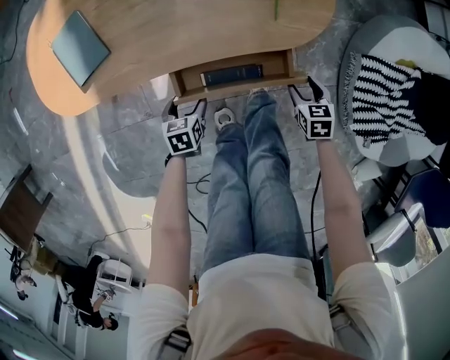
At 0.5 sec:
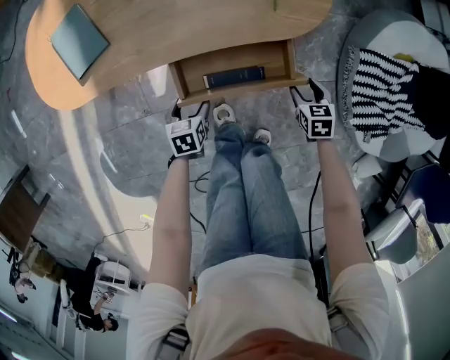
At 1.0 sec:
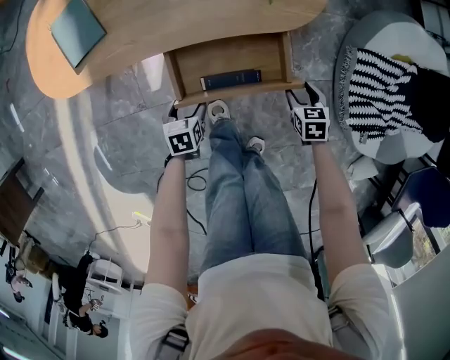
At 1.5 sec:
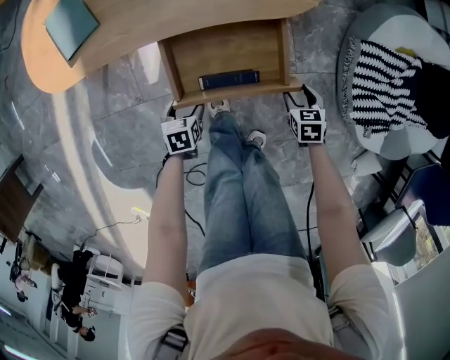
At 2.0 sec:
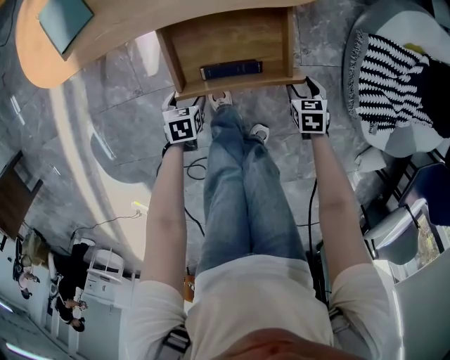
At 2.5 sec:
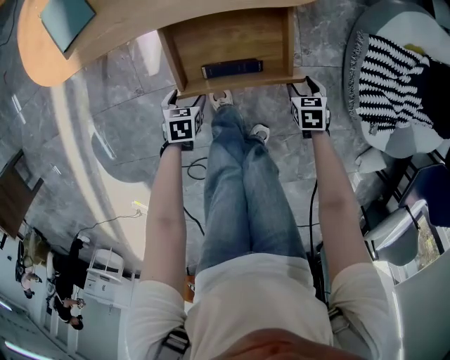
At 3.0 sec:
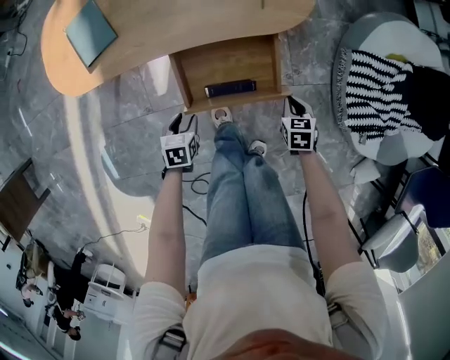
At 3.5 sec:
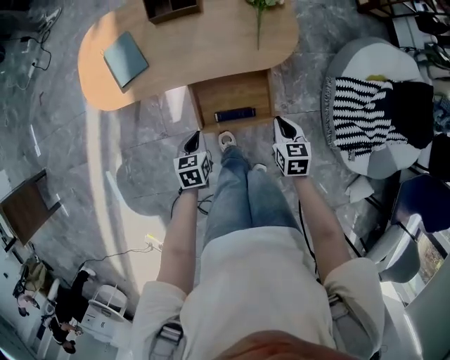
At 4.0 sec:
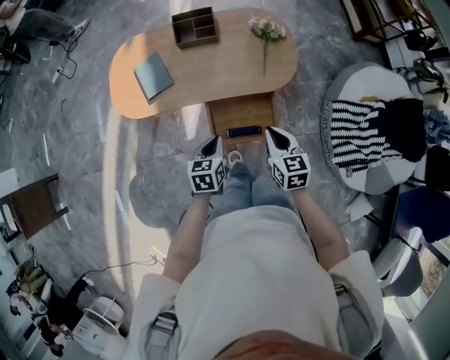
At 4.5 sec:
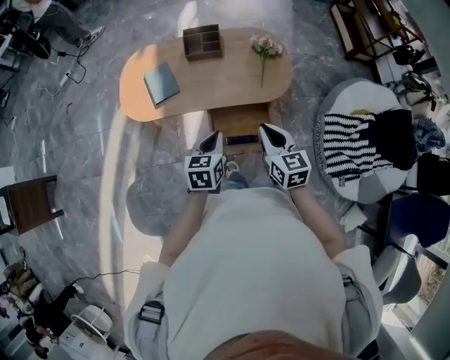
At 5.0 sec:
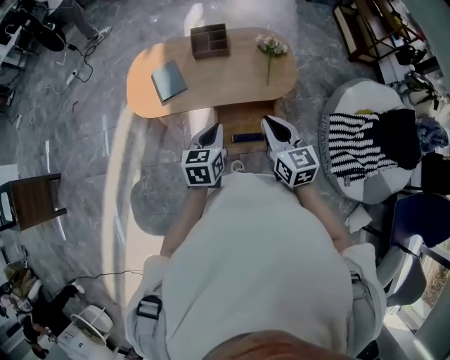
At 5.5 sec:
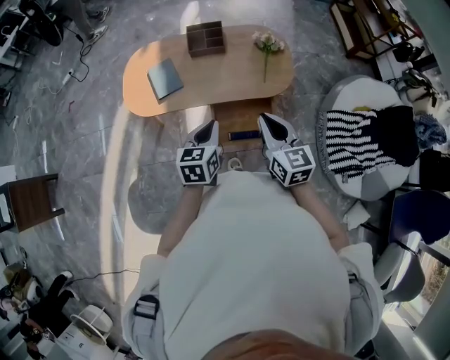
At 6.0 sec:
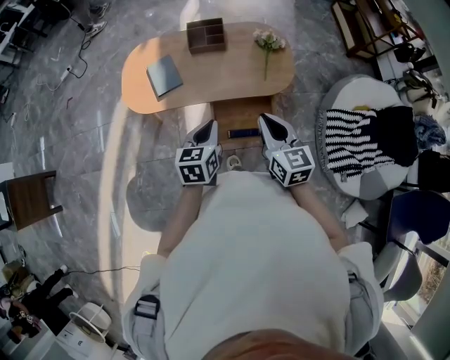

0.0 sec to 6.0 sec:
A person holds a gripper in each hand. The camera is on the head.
0.0 sec to 2.0 sec: Both grippers move backward and downward, some 15 cm.
2.0 sec to 4.0 sec: The grippers both shift upward by about 40 cm. The left gripper rotates approximately 30 degrees, and closes up. Meanwhile the right gripper points its fingers roughly 40 degrees further upward, and closes up.
4.0 sec to 6.0 sec: The two grippers go about 15 cm upward.

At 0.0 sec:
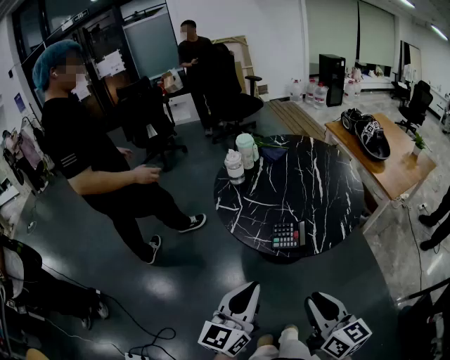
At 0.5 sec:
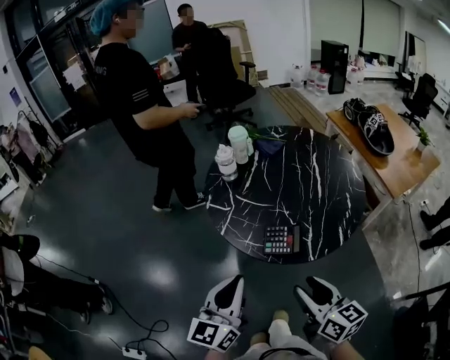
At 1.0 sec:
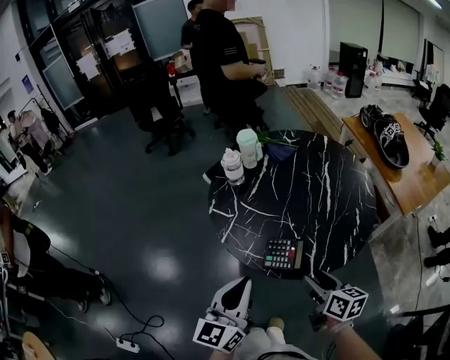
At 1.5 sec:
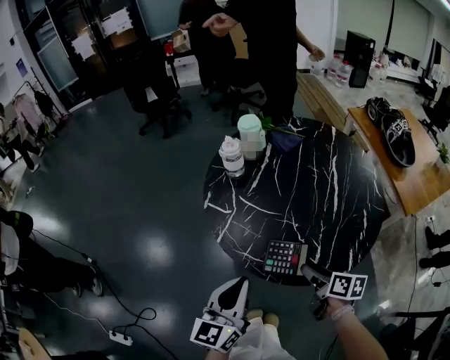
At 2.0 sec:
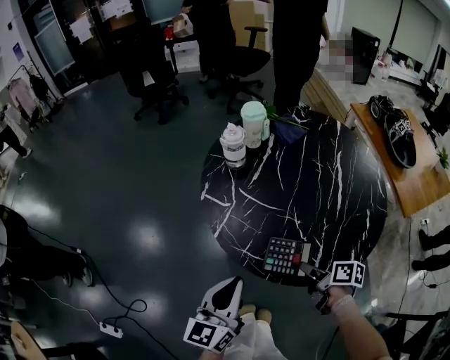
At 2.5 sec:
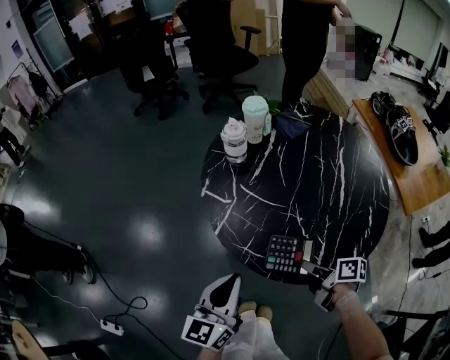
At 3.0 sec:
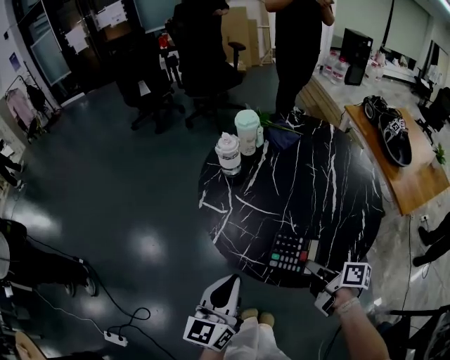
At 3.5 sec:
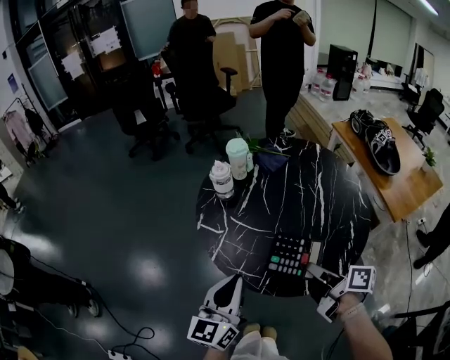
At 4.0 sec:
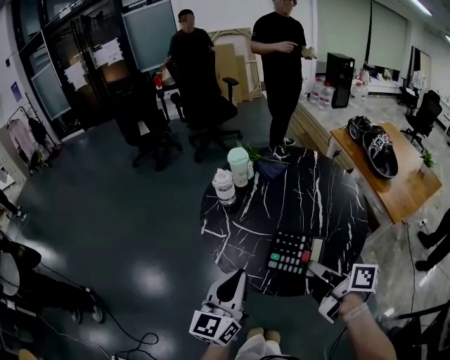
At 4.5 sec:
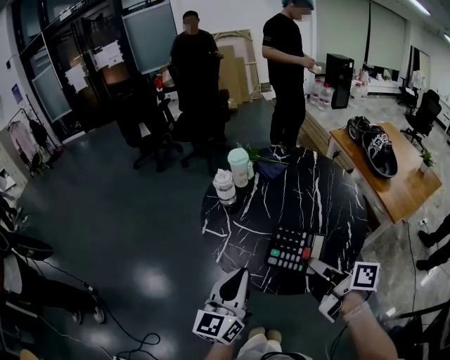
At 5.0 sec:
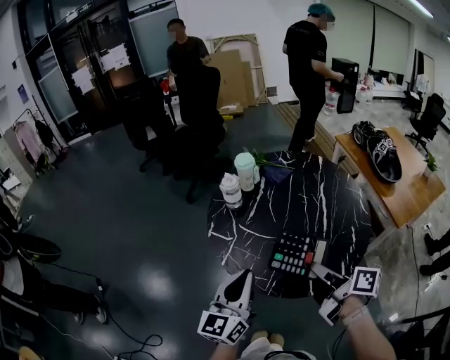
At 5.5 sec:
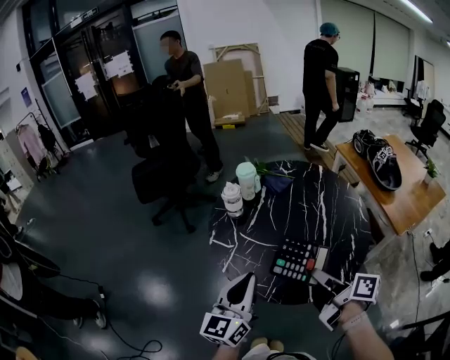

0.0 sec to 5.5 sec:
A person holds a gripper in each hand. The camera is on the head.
0.0 sec to 2.0 sec: The right gripper is displaced forward and downward by about 35 cm, changes its angle by about 50 degrees, and opens, then closes again; the left gripper moves forward and downward, about 20 cm.
2.0 sec to 3.5 sec: The right gripper is displaced upward by roughly 15 cm, while the left gripper shifts roughly 5 cm upward.
3.5 sec to 5.5 sec: The right gripper shifts some 5 cm upward.

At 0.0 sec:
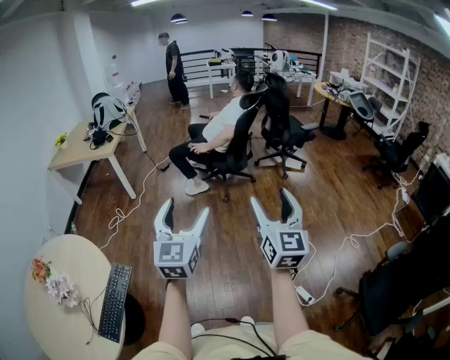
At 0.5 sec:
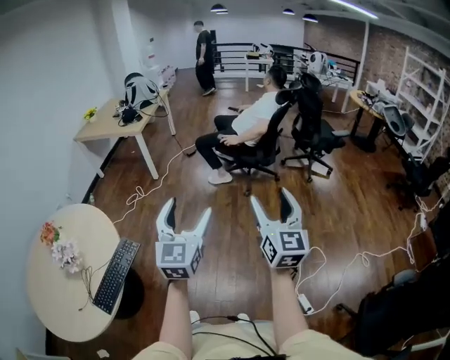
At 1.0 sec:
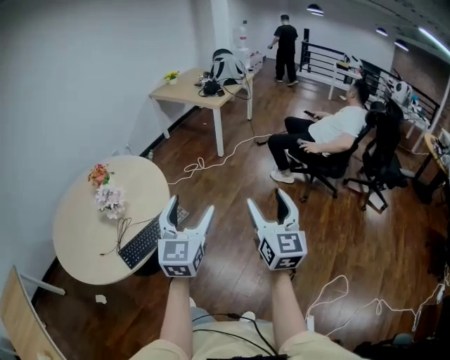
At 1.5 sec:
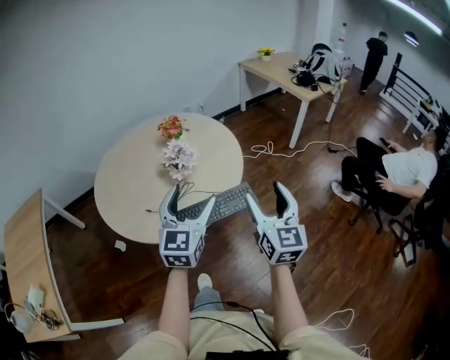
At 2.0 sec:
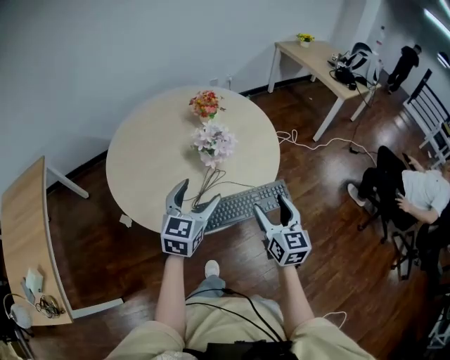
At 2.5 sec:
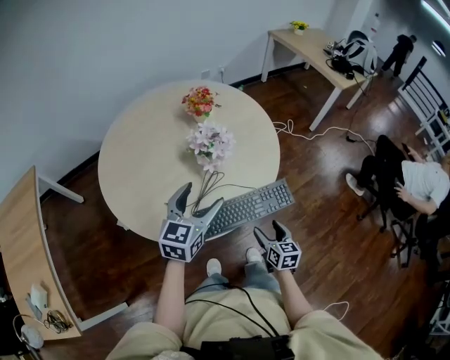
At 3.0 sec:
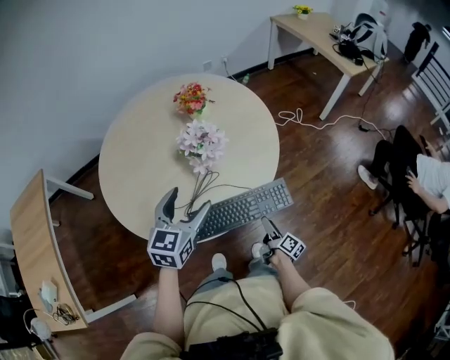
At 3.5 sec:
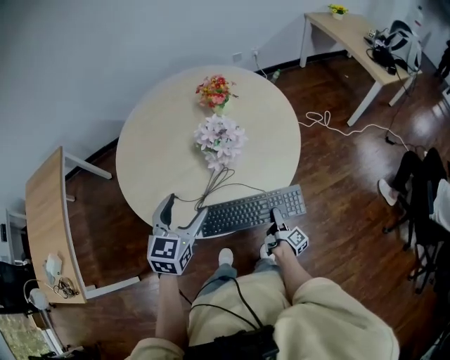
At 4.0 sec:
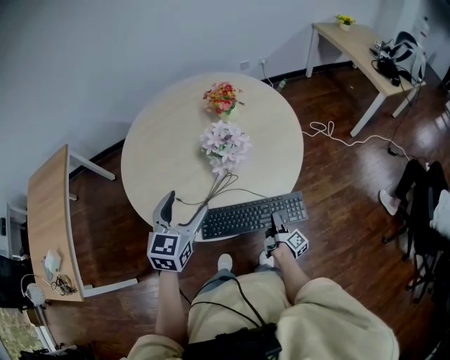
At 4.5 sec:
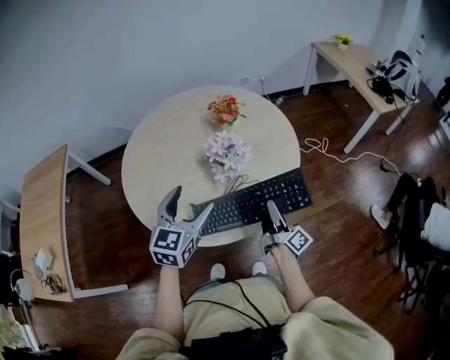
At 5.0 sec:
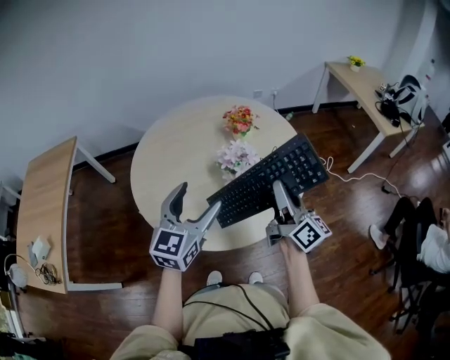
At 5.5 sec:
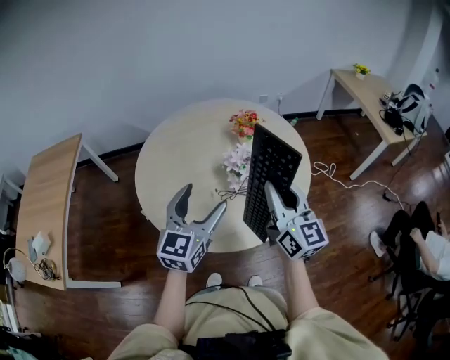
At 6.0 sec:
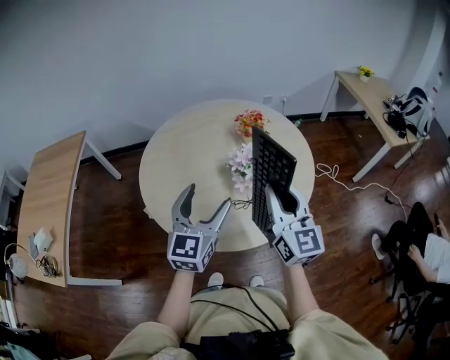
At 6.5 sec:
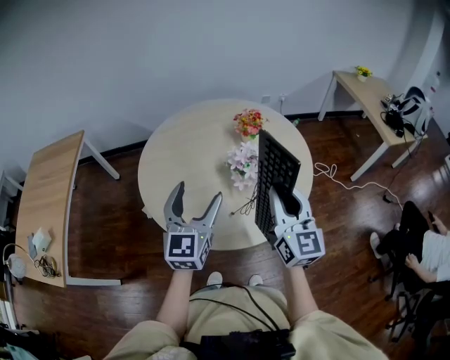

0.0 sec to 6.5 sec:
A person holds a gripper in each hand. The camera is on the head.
0.0 sec to 2.0 sec: The two grippers travel together, approximately 70 cm. The left gripper swivels roughly 60 degrees, while the right gripper swivels some 80 degrees.
2.0 sec to 4.5 sec: The right gripper moves forward, about 15 cm, goes downward and returns, roughly 35 cm each way, rolls clockwise, seen from behind, by about 60 degrees, and closes its fingers. The left gripper shifts by roughly 5 cm.
4.5 sec to 6.5 sec: The right gripper travels upward by about 25 cm, and rolls counterclockwise, seen from behind, by roughly 70 degrees. The left gripper shifts approximately 10 cm upward and to the left, and turns by approximately 20 degrees.

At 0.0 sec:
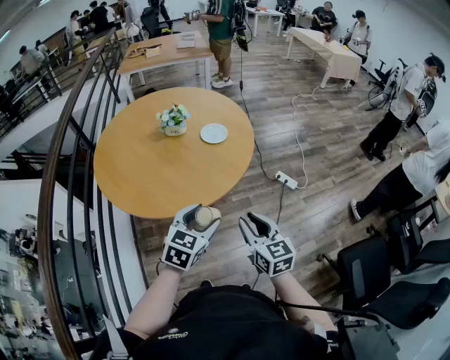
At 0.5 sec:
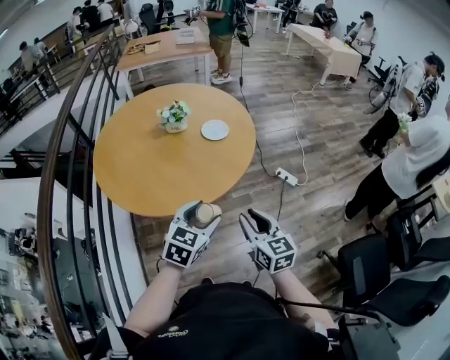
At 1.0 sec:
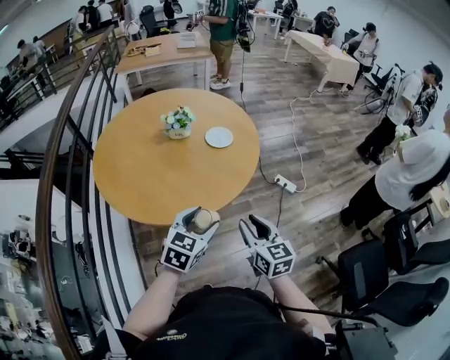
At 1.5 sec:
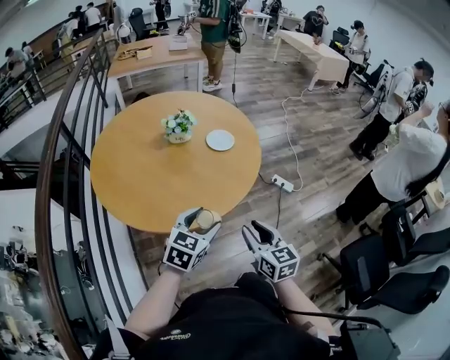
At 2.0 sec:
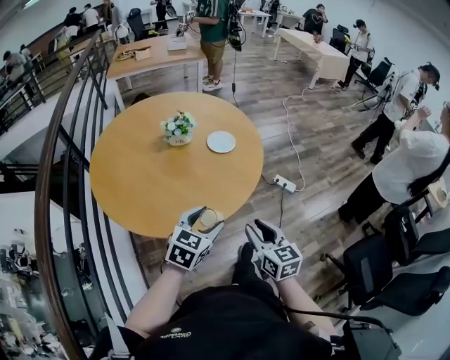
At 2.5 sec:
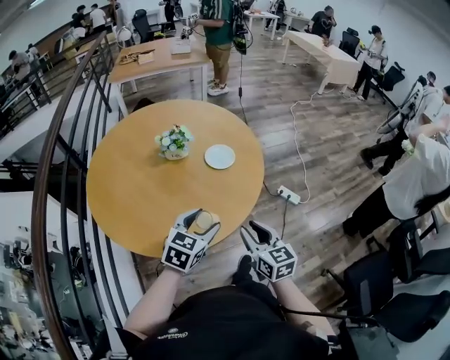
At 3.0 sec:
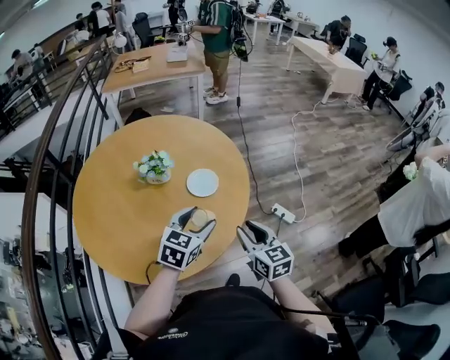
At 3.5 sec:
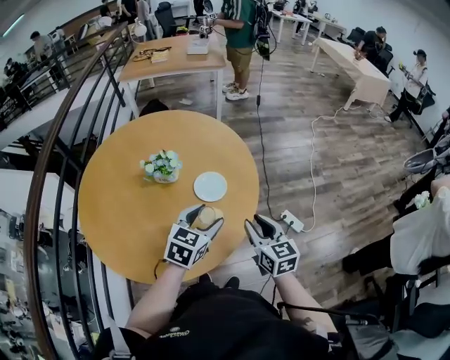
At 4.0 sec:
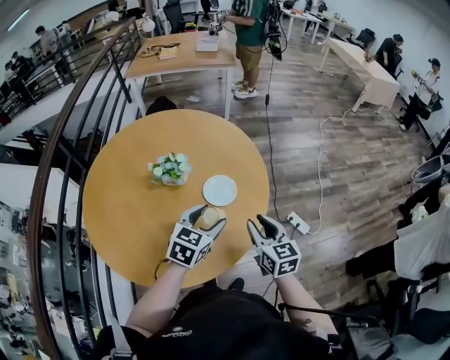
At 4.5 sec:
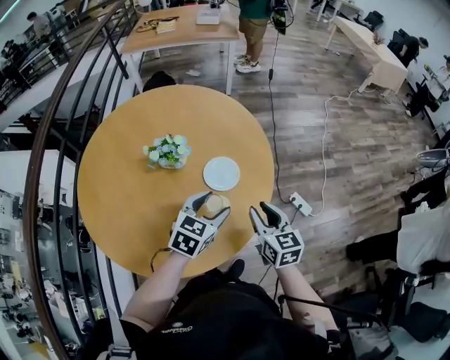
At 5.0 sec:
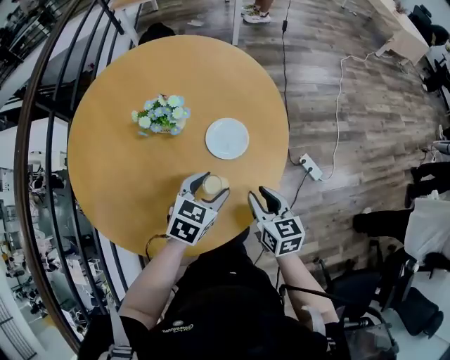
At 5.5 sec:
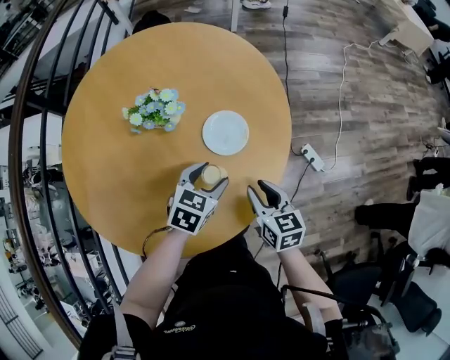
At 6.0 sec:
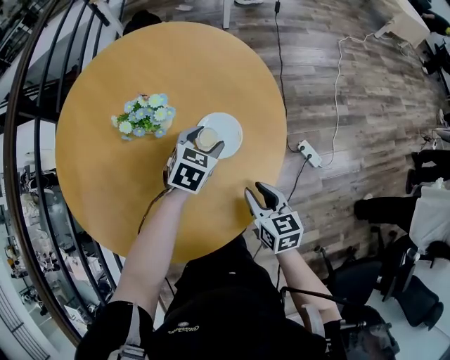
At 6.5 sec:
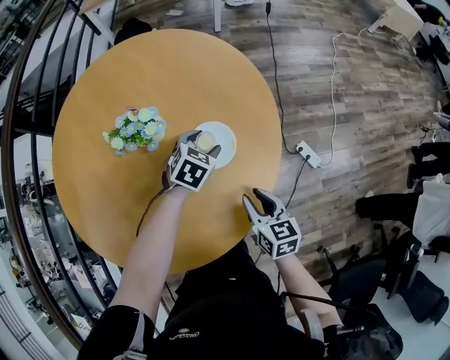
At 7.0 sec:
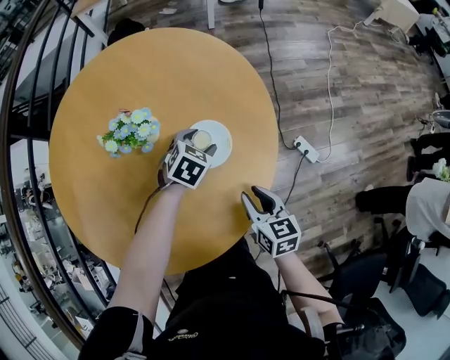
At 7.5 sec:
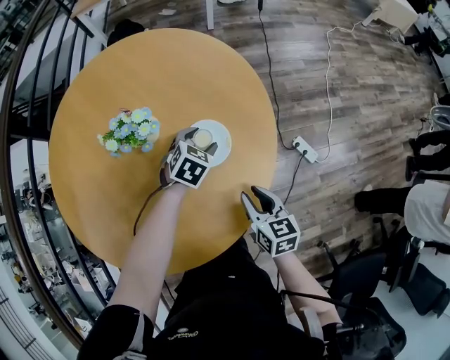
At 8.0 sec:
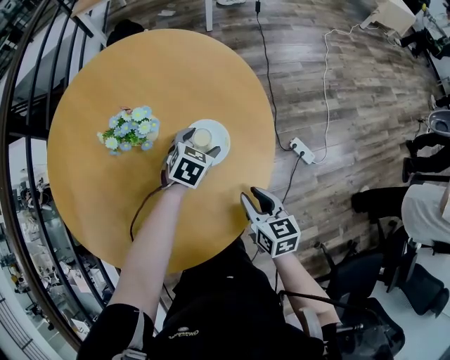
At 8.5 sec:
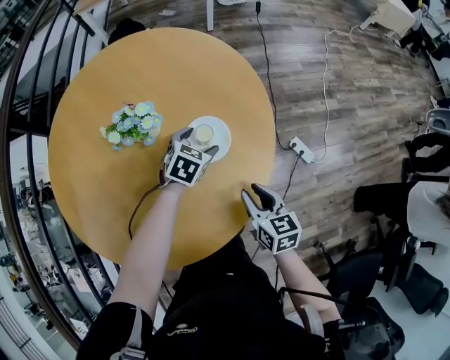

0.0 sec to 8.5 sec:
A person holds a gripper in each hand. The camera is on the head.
0.0 sec to 2.0 sec: The right gripper shifts about 5 cm to the left. Meanwhile the left gripper moves to the left and forward, about 10 cm.
2.0 sec to 4.0 sec: Both grippers move forward, approximately 30 cm.
4.0 sec to 6.5 sec: The left gripper travels downward and forward by about 25 cm, and rotates about 20 degrees. Meanwhile the right gripper shifts roughly 15 cm downward.
6.5 sec to 8.5 sec: The grippers stay close to where they were, moving slightly.
